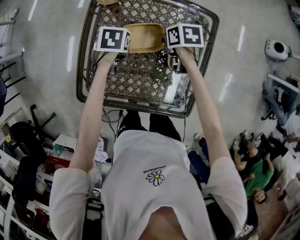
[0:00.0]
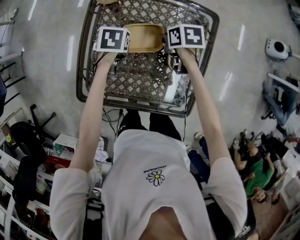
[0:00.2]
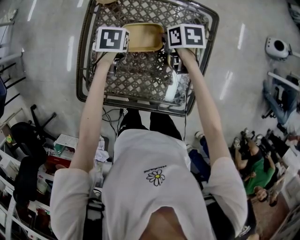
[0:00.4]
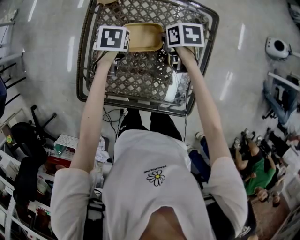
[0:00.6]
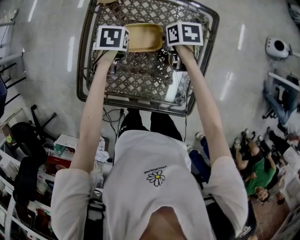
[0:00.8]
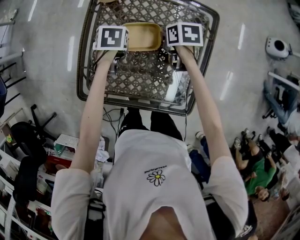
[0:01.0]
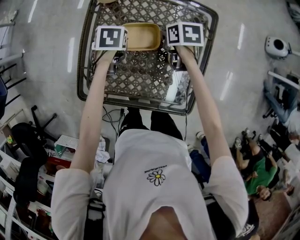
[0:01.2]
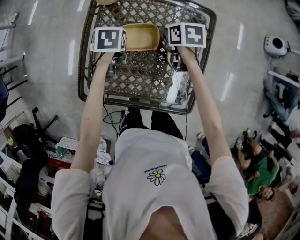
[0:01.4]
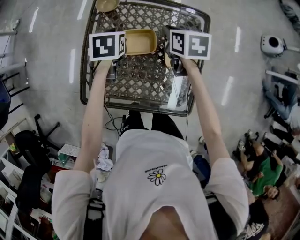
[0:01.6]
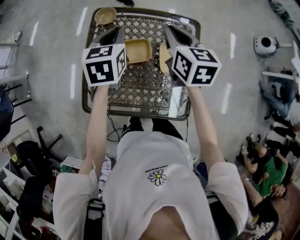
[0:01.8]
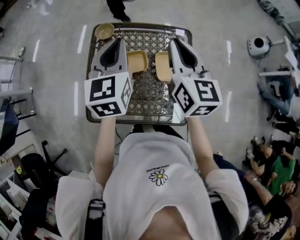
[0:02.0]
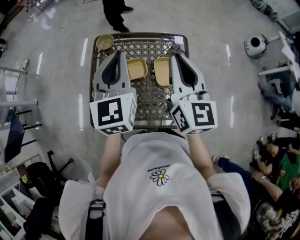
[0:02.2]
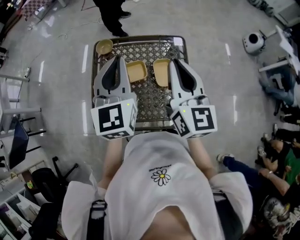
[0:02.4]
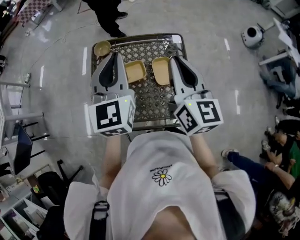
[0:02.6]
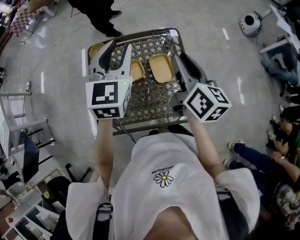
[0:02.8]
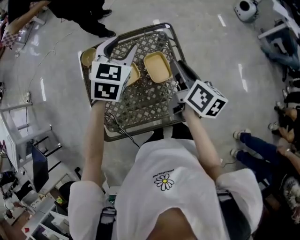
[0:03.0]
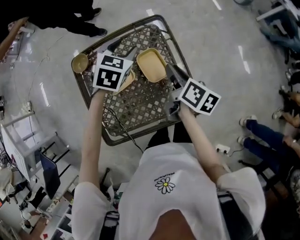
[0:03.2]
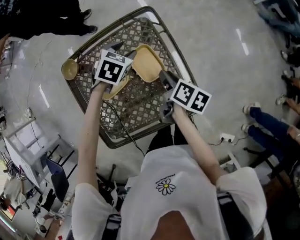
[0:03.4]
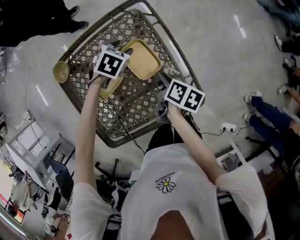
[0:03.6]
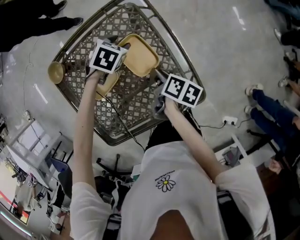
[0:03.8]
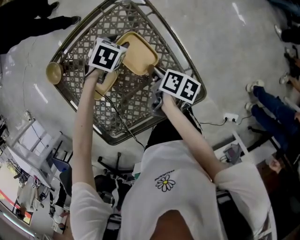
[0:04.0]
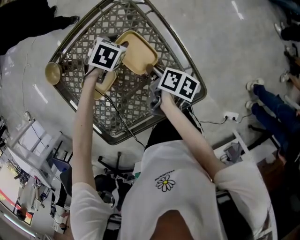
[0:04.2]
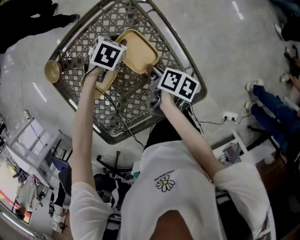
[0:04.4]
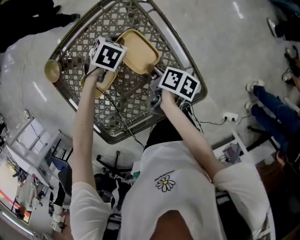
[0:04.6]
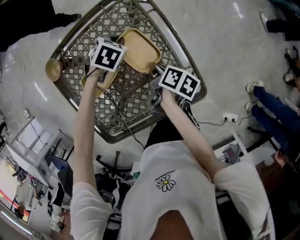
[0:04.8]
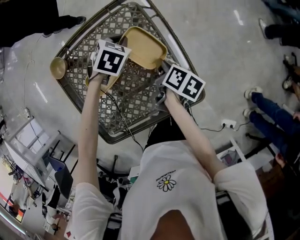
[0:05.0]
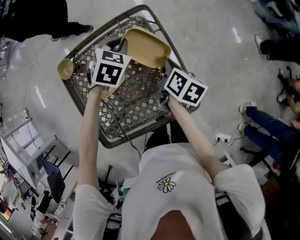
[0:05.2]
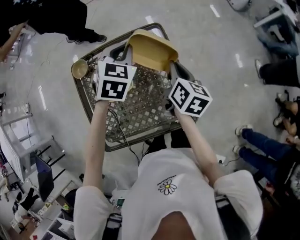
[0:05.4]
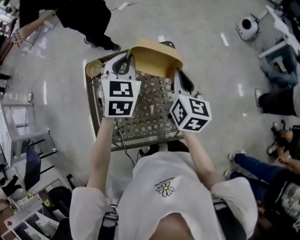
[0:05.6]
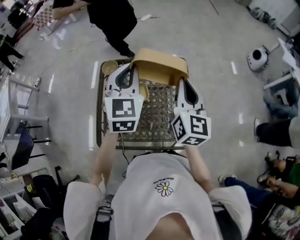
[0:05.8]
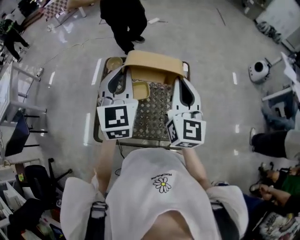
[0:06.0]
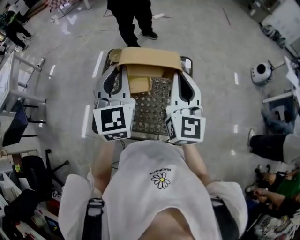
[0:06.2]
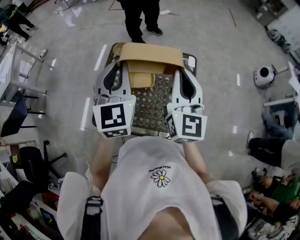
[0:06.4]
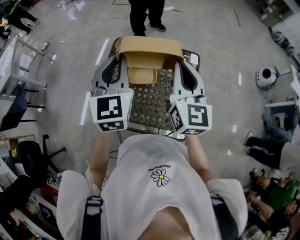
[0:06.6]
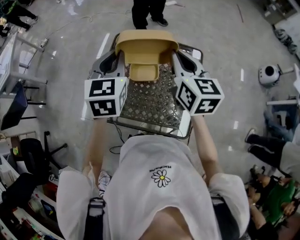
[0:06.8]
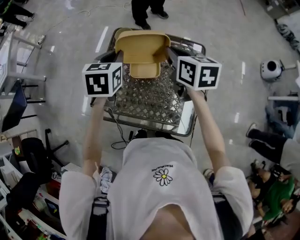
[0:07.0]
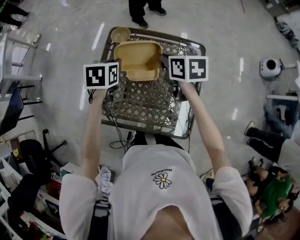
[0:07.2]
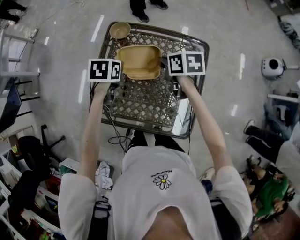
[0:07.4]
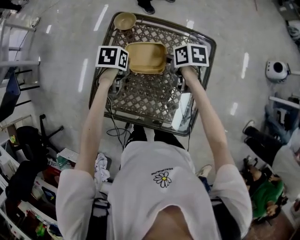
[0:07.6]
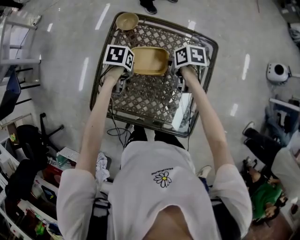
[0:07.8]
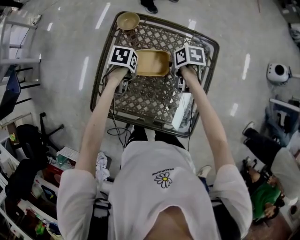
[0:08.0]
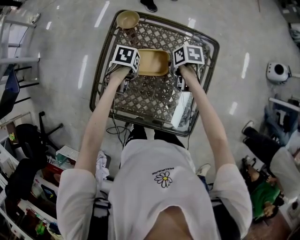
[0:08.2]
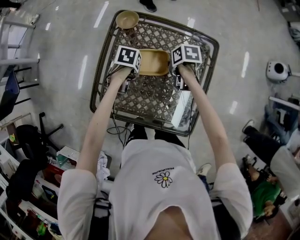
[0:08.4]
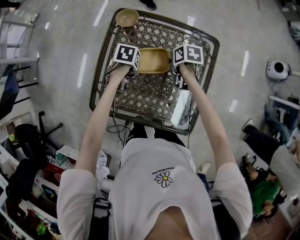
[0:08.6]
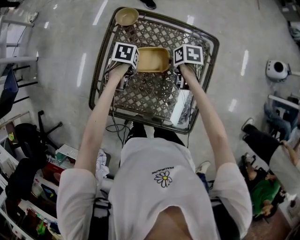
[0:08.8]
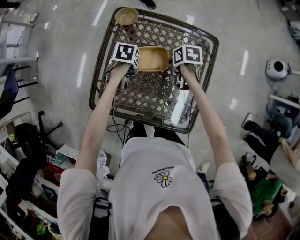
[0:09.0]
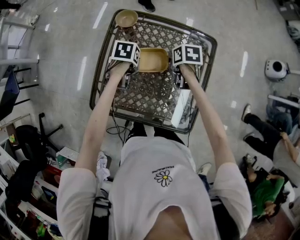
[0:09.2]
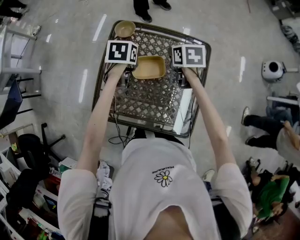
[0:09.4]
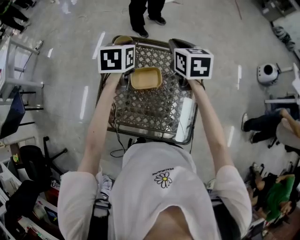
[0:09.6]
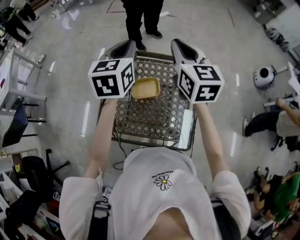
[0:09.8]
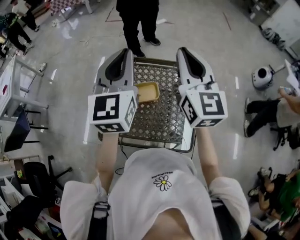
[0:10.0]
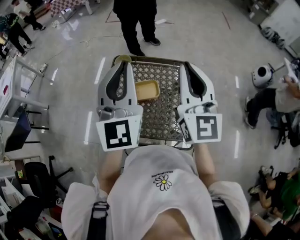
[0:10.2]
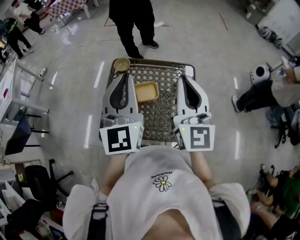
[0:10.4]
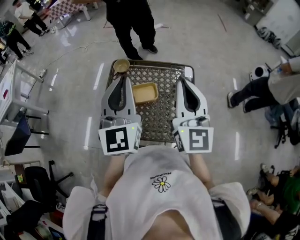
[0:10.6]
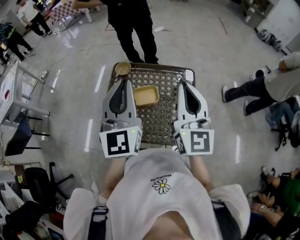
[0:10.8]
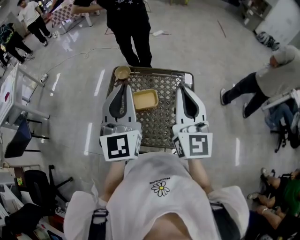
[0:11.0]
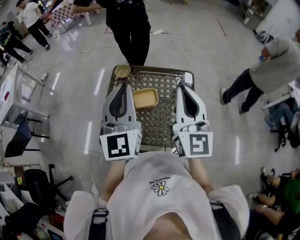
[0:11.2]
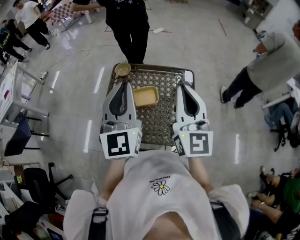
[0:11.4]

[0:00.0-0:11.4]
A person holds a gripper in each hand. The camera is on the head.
0:00.0 to 0:01.4: There are only small adjustments of the grippers.
0:01.4 to 0:02.8: The two grippers go roughly 30 cm upward. The left gripper points its fingers approximately 50 degrees further upward, and closes, then reopens; the right gripper angles its fingers upward, by approximately 50 degrees.
0:02.8 to 0:04.2: Both grippers move downward, roughly 40 cm. The right gripper rolls clockwise, seen from behind, by some 50 degrees. The left gripper points its fingers approximately 60 degrees further downward.
0:04.2 to 0:05.6: Both grippers travel together upward, some 35 cm. The left gripper angles its fingers upward, by some 40 degrees, and closes up, while the right gripper twists some 60 degrees counterclockwise, seen from behind, and closes.
0:05.6 to 0:07.2: The left gripper changes place by about 25 cm, and twists approximately 40 degrees counterclockwise, seen from behind. Meanwhile the right gripper goes upward and returns, some 15 cm each way, and changes its angle by about 60 degrees.
0:07.2 to 0:08.6: The grippers both shift downward by about 20 cm. The left gripper rotates approximately 30 degrees, and opens its fingers. The right gripper swivels approximately 30 degrees.
0:08.6 to 0:10.0: The grippers both shift upward by approximately 50 cm. The right gripper points its fingers some 70 degrees further upward, while the left gripper angles its fingers upward, by about 80 degrees, and closes up.
0:10.0 to 0:11.4: Both grippers travel together backward, about 10 cm.

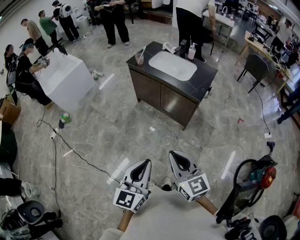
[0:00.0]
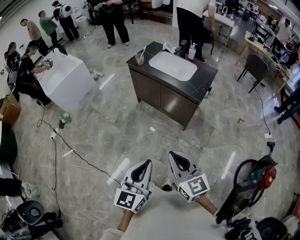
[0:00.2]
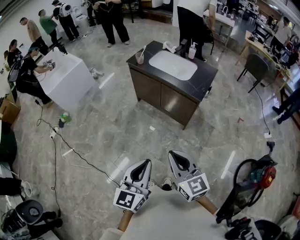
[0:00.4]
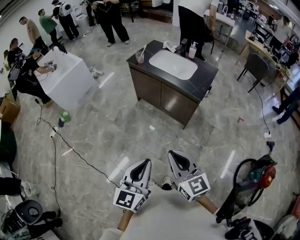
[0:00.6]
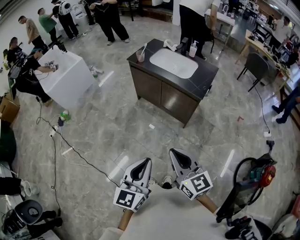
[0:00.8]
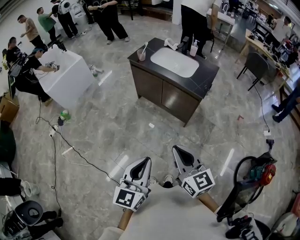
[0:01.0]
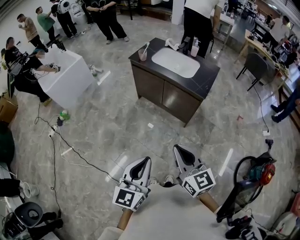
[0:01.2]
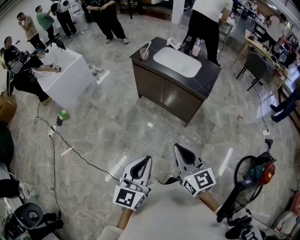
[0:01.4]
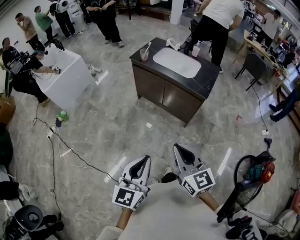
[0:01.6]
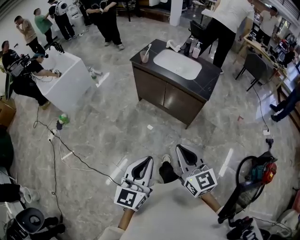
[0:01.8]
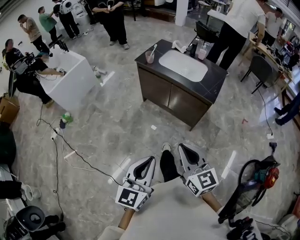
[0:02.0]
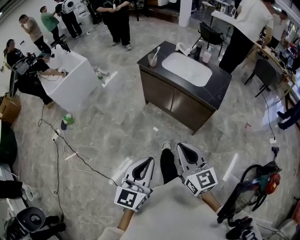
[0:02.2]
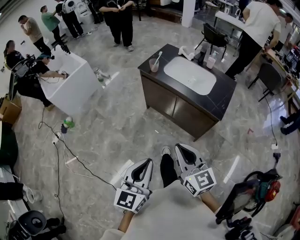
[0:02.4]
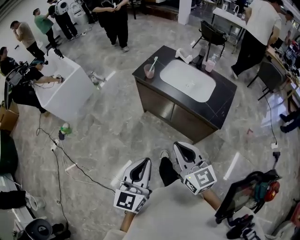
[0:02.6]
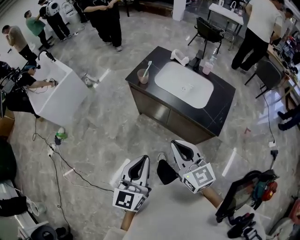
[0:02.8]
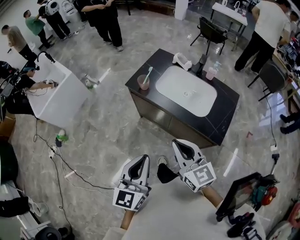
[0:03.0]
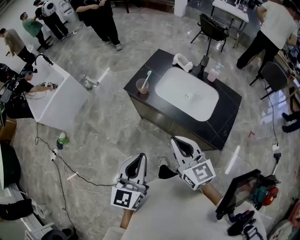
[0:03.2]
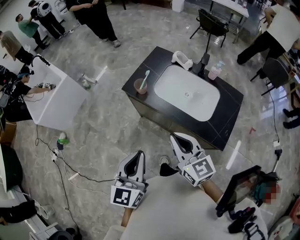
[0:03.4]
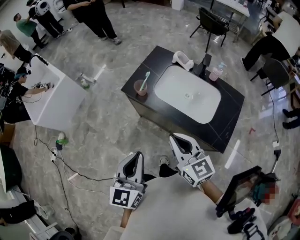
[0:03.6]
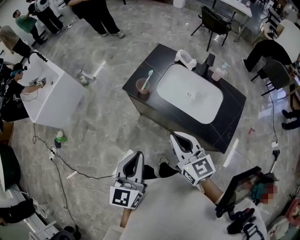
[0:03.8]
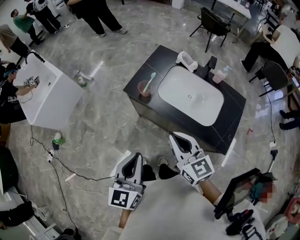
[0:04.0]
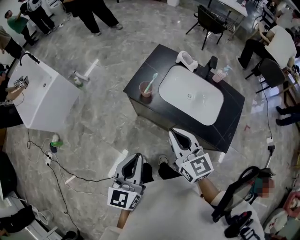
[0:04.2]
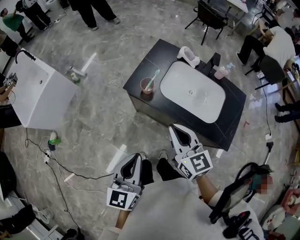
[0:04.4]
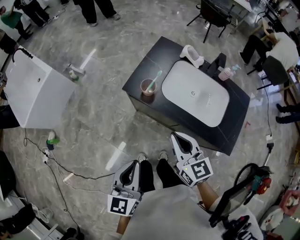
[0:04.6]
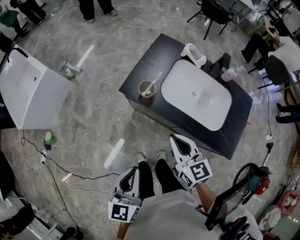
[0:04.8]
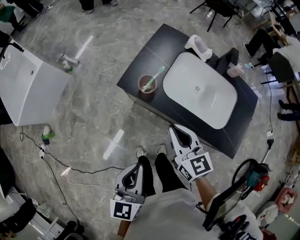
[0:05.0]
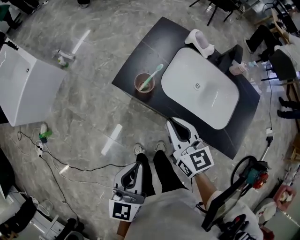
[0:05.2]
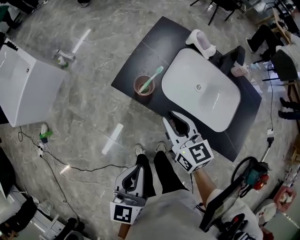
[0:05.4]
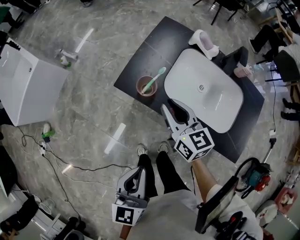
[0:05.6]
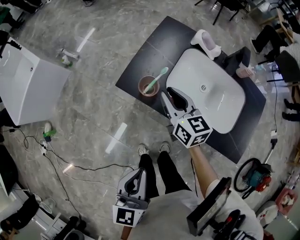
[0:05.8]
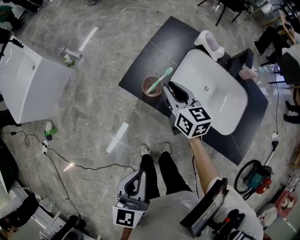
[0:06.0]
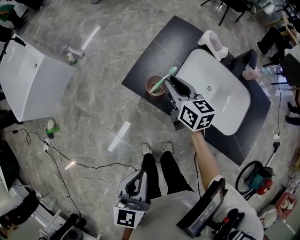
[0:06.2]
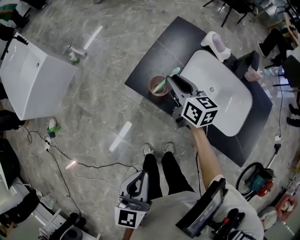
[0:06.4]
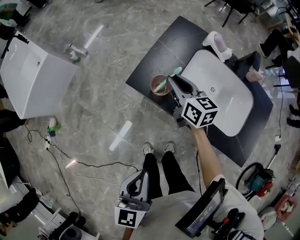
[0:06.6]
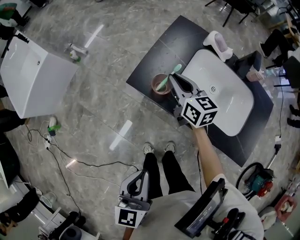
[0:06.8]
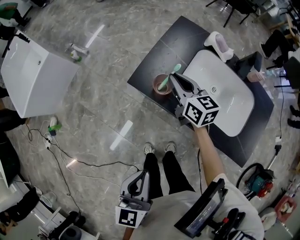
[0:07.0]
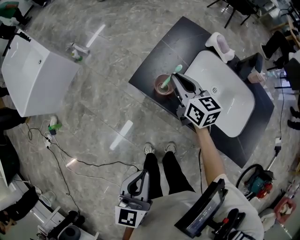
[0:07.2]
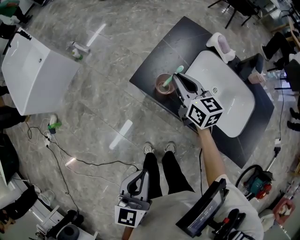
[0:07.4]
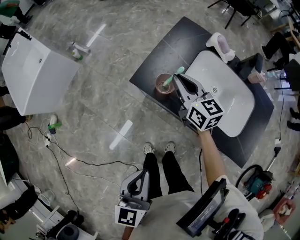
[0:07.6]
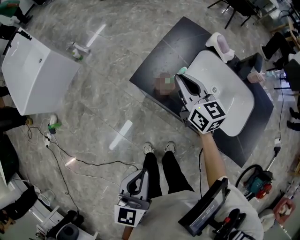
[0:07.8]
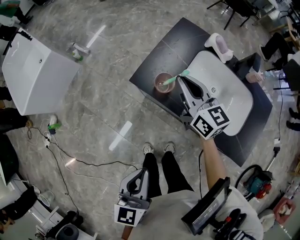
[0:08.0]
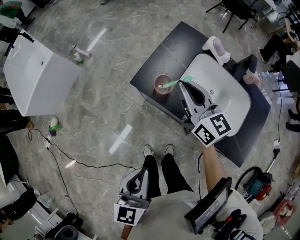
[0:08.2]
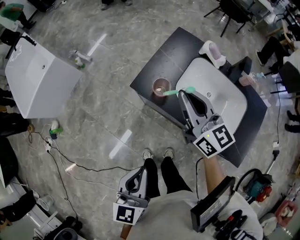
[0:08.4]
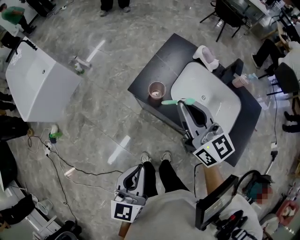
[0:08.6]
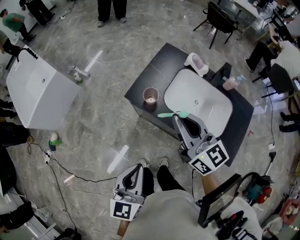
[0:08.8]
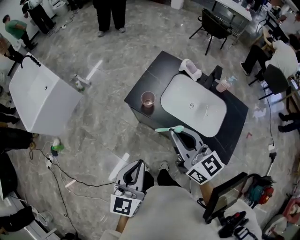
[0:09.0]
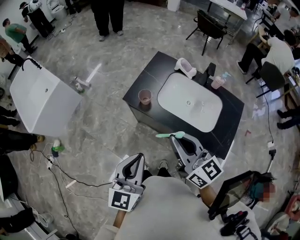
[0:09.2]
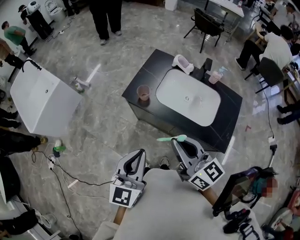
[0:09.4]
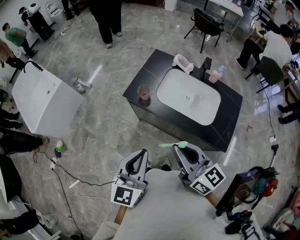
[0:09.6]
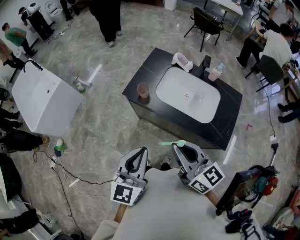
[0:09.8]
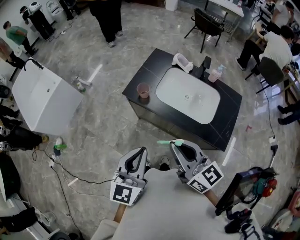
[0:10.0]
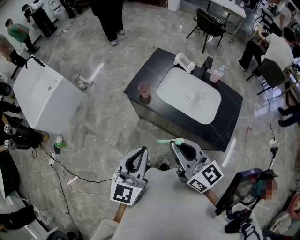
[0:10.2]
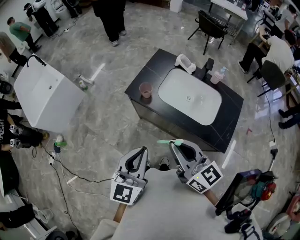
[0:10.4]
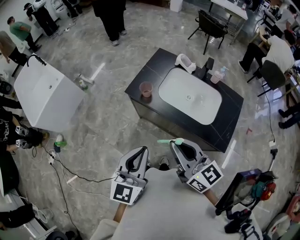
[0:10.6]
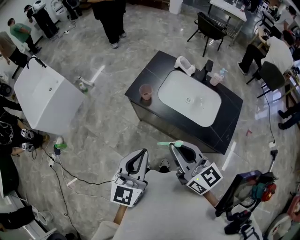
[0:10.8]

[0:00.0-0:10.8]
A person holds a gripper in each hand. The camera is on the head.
0:00.0 to 0:01.6: The left gripper heads to the left, covering approximately 5 cm; the right gripper changes place by about 5 cm.
0:01.6 to 0:03.0: Both grippers move forward, about 35 cm.
0:03.0 to 0:04.6: The left gripper goes approximately 15 cm forward, to the left and downward, while the right gripper is displaced forward and downward by approximately 15 cm.
0:04.6 to 0:06.2: The right gripper is displaced forward and downward by some 25 cm, and opens its fingers. The left gripper ends up some 5 cm from where it was.
0:06.2 to 0:07.8: There are only small adjustments of the grippers.
0:07.8 to 0:09.2: The right gripper heads backward and upward, covering some 30 cm, while the left gripper goes about 10 cm upward, and turns by some 20 degrees.
0:09.2 to 0:10.8: The right gripper travels backward by approximately 5 cm.

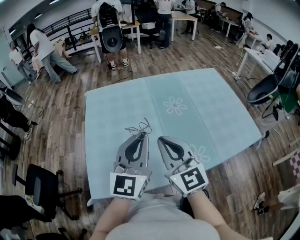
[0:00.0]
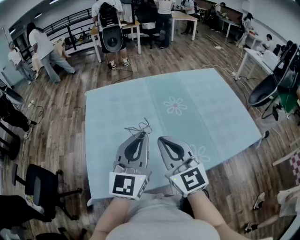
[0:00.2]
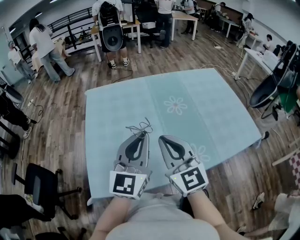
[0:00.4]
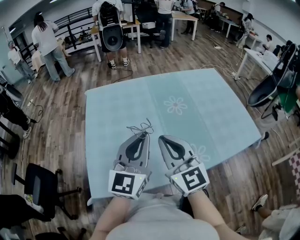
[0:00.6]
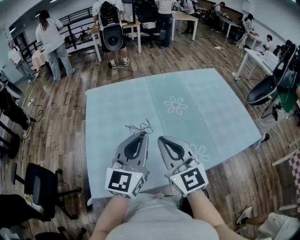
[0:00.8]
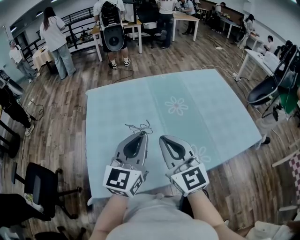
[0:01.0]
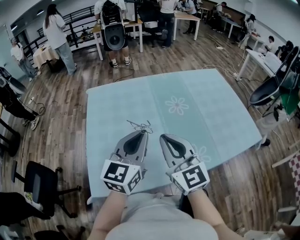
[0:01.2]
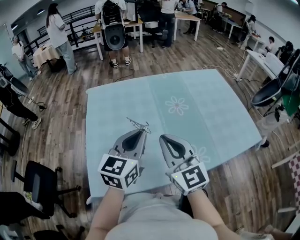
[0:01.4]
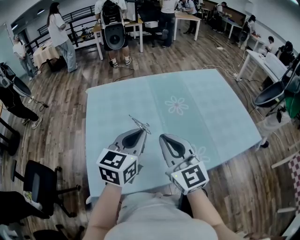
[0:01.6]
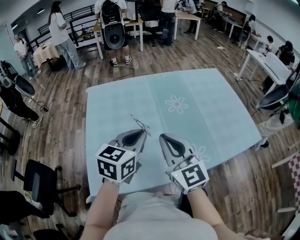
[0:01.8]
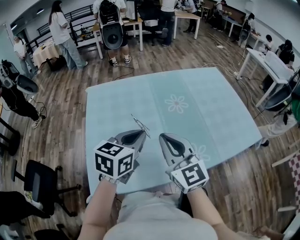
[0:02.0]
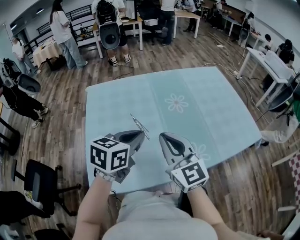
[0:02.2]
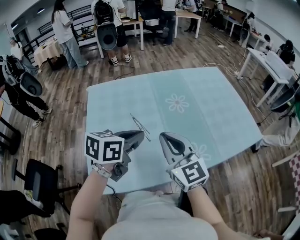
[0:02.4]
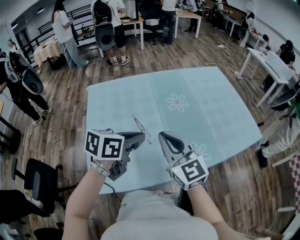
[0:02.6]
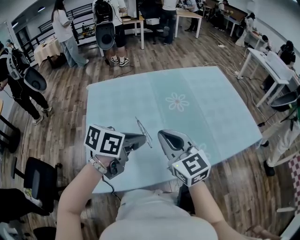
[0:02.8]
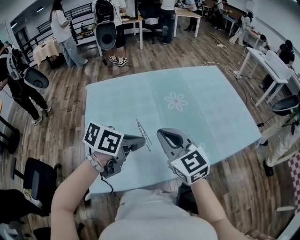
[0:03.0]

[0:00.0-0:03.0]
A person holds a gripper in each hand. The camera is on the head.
0:00.0 to 0:01.6: The left gripper turns by approximately 20 degrees.
0:01.6 to 0:03.0: The left gripper travels downward by about 5 cm, and turns by approximately 40 degrees.
